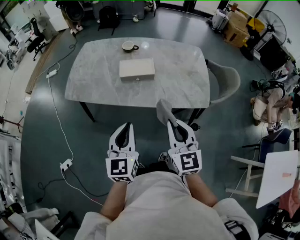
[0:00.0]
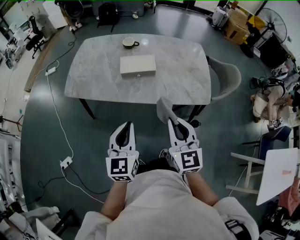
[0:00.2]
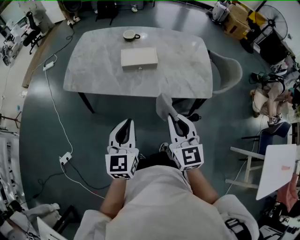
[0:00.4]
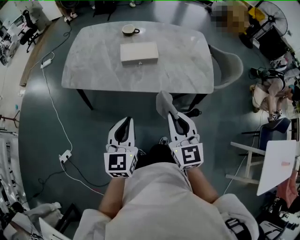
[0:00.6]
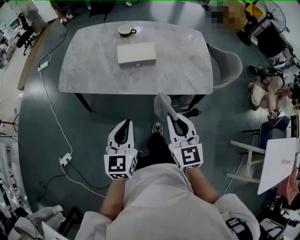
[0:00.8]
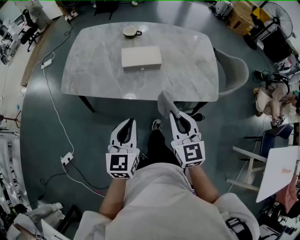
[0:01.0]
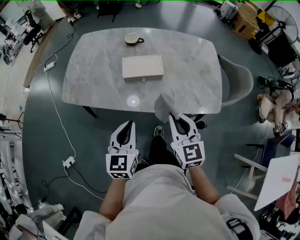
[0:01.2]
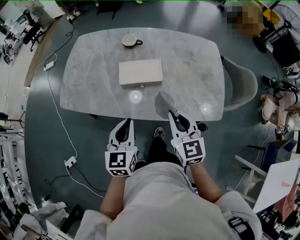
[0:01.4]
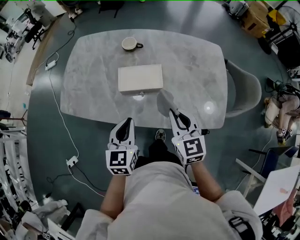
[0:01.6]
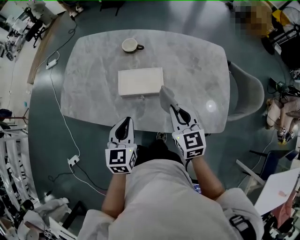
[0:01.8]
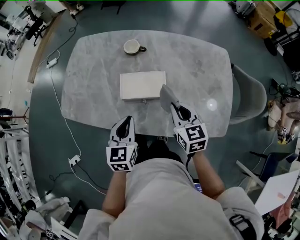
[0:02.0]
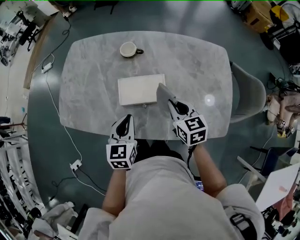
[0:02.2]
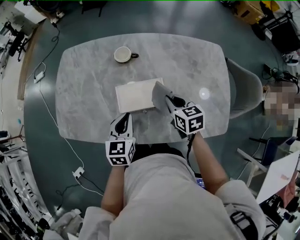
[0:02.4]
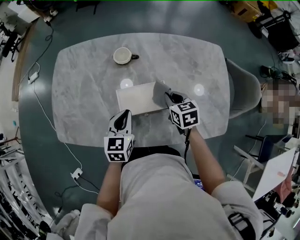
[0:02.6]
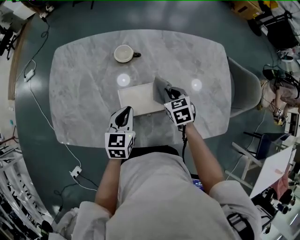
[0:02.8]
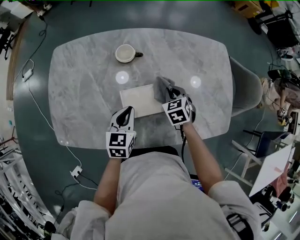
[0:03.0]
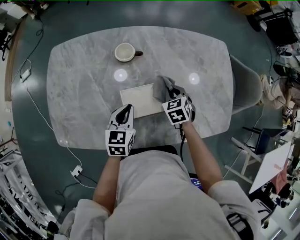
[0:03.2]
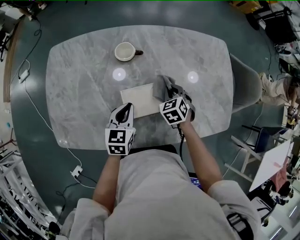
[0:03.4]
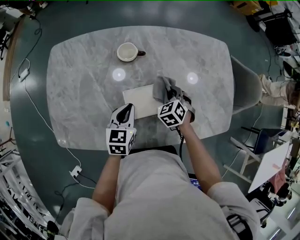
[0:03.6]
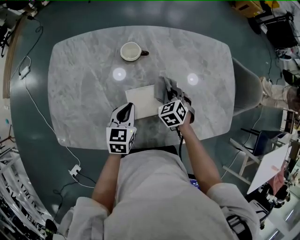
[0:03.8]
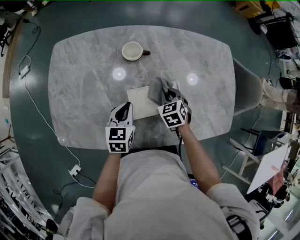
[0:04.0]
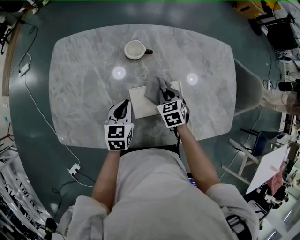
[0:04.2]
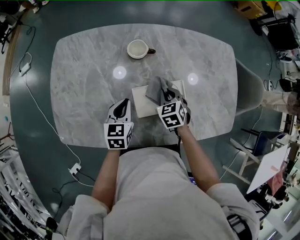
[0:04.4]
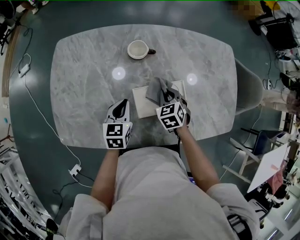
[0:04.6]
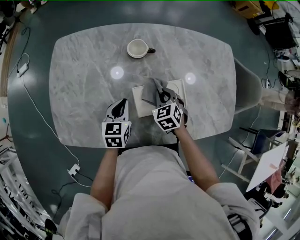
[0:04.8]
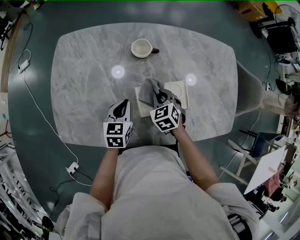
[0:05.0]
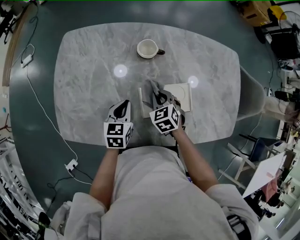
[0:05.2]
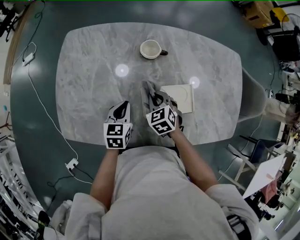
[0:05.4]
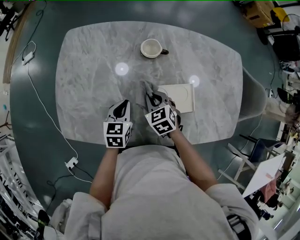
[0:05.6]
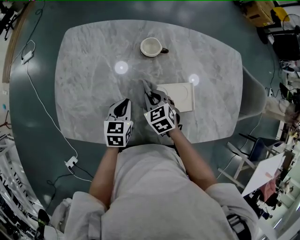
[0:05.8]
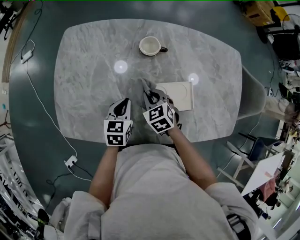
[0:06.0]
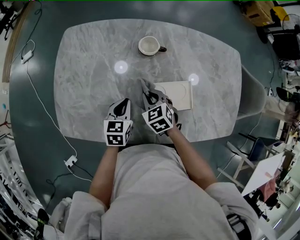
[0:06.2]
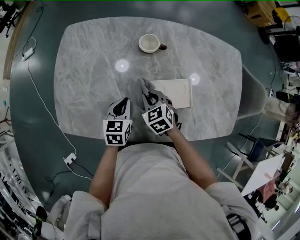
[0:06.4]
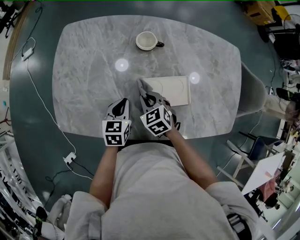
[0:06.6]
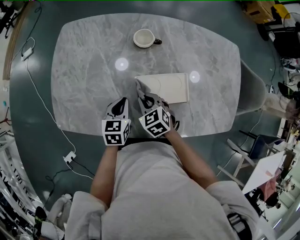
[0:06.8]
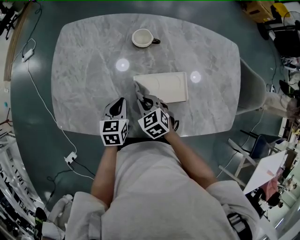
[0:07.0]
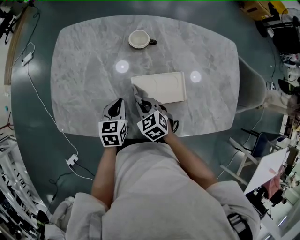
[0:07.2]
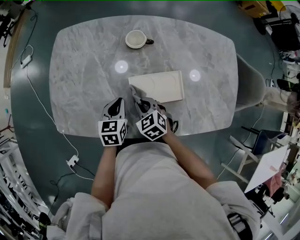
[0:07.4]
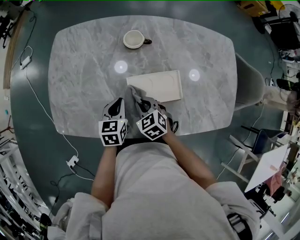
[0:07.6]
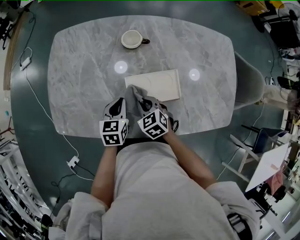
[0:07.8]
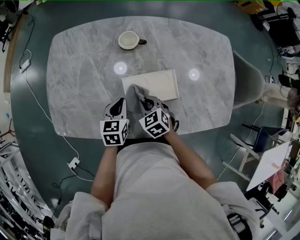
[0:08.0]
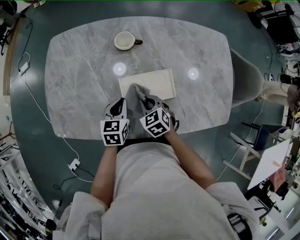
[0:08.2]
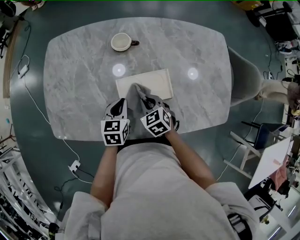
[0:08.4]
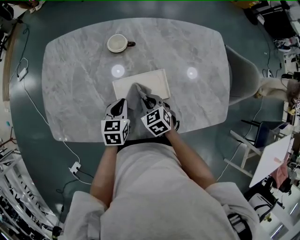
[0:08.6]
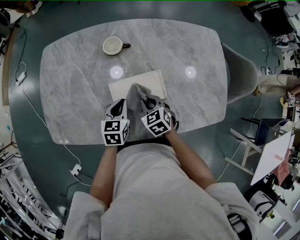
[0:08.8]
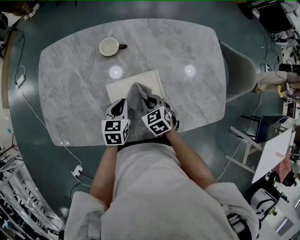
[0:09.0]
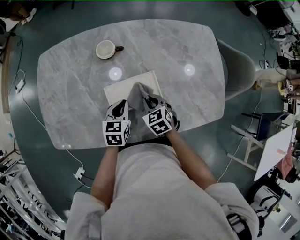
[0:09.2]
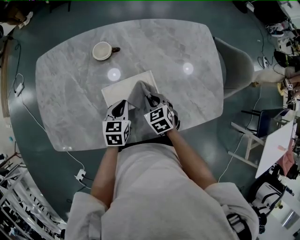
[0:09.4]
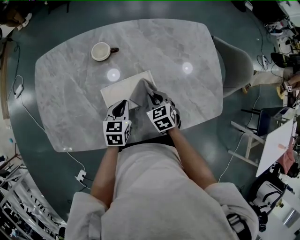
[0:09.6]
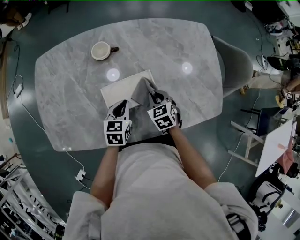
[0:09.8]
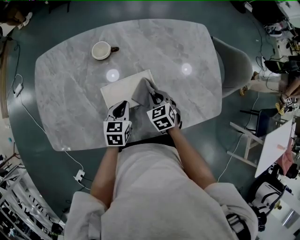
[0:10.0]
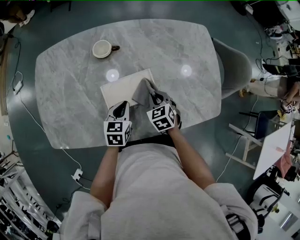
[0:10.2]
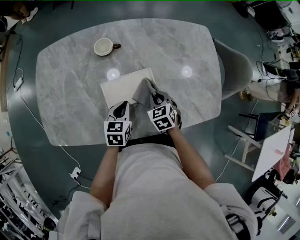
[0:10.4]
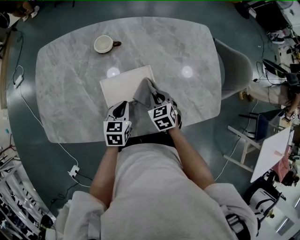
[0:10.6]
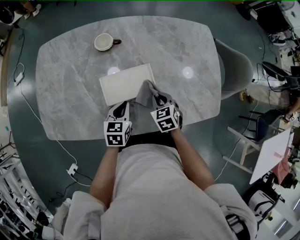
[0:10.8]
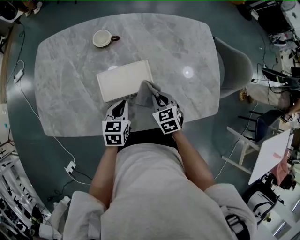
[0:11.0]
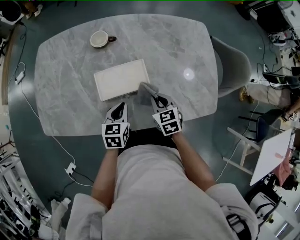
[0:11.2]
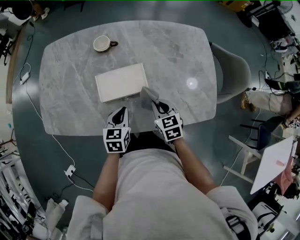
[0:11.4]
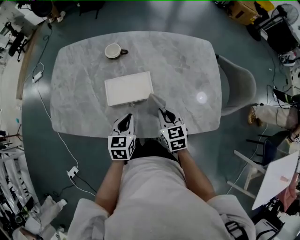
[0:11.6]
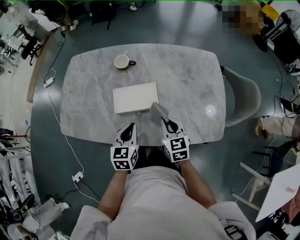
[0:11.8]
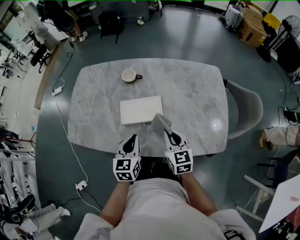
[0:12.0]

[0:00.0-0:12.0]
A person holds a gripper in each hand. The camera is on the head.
0:00.0 to 0:01.6: Both grippers move forward, some 25 cm.
0:01.6 to 0:03.0: The two grippers go about 30 cm forward and downward. The left gripper rotates roughly 20 degrees. Meanwhile the right gripper tilts its fingers about 30 degrees downward.
0:03.0 to 0:04.4: The two grippers go approximately 10 cm to the left.
0:04.4 to 0:06.0: The right gripper heads to the left, covering some 10 cm.
0:06.0 to 0:07.6: The right gripper travels backward by approximately 10 cm.
0:07.6 to 0:09.0: The two grippers go approximately 10 cm to the right.
0:09.0 to 0:10.4: The right gripper moves to the right, roughly 5 cm.
0:10.4 to 0:12.0: Both grippers move upward and backward, some 15 cm. The left gripper swivels approximately 20 degrees, while the right gripper changes its angle by some 30 degrees.

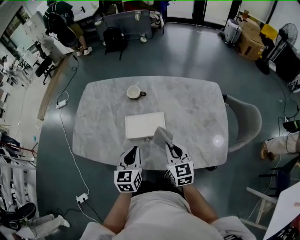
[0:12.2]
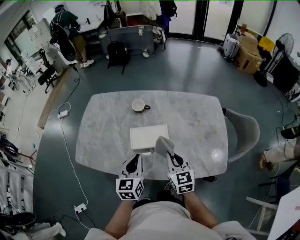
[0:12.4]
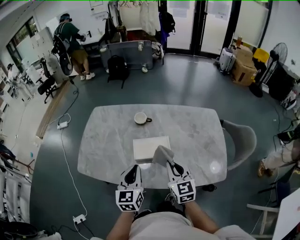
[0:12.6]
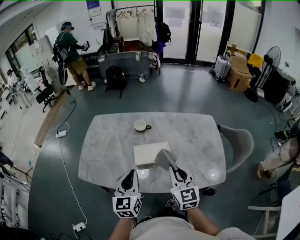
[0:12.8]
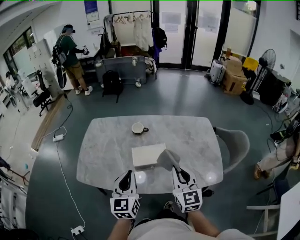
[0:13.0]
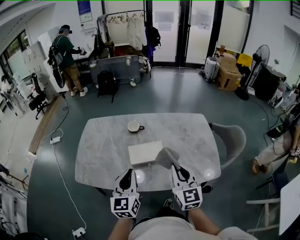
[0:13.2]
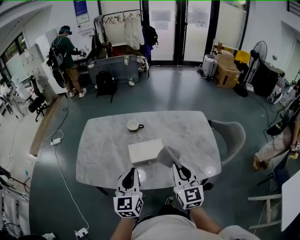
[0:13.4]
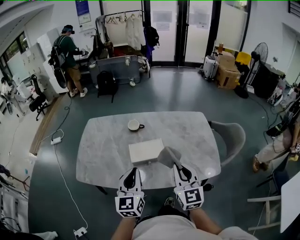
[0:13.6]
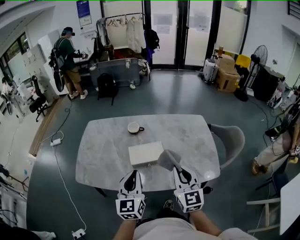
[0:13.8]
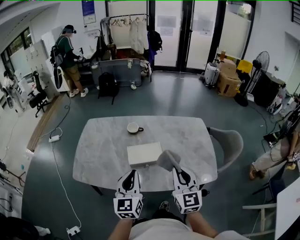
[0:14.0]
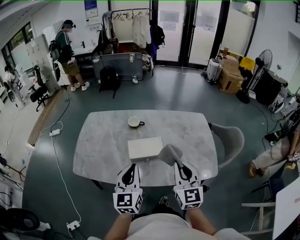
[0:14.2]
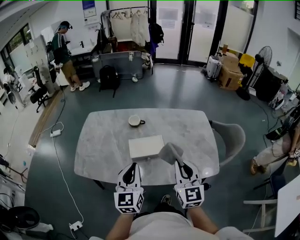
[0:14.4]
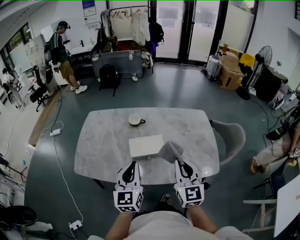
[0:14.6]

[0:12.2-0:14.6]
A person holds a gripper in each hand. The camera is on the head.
0:12.2 to 0:13.4: The two grippers go some 15 cm upward and backward. The right gripper turns by some 20 degrees.
0:13.4 to 0:14.6: The grippers make only small movements.

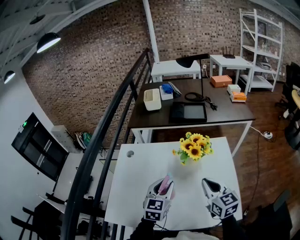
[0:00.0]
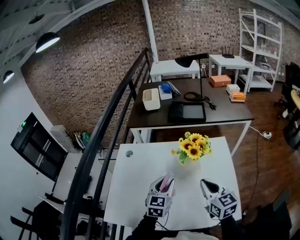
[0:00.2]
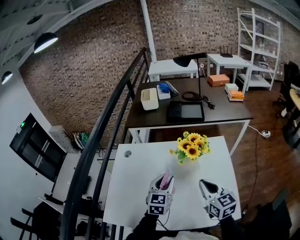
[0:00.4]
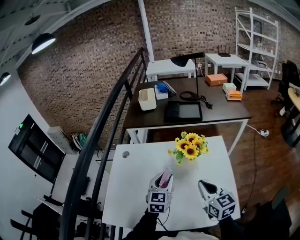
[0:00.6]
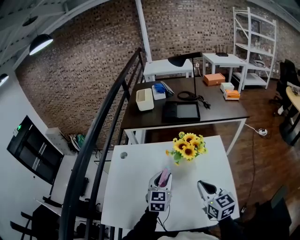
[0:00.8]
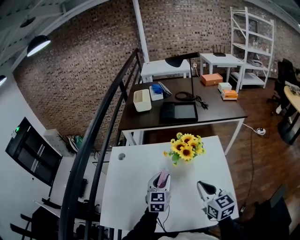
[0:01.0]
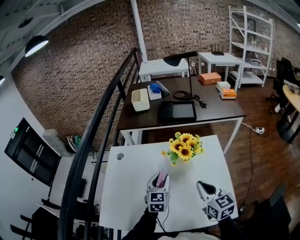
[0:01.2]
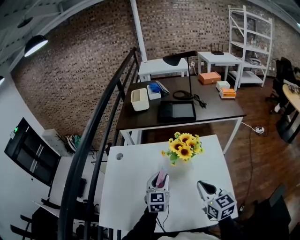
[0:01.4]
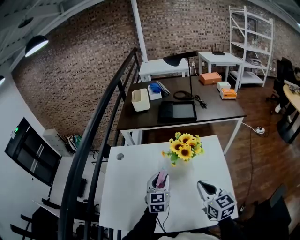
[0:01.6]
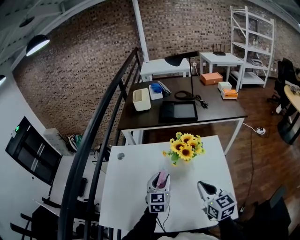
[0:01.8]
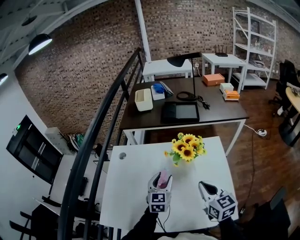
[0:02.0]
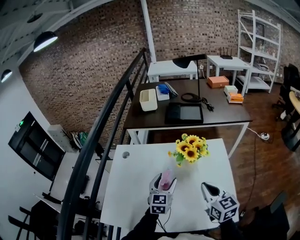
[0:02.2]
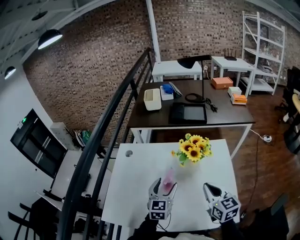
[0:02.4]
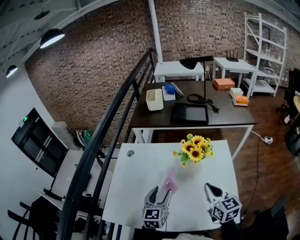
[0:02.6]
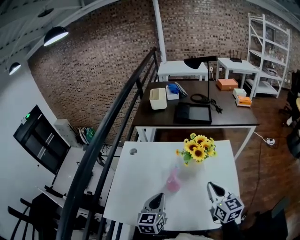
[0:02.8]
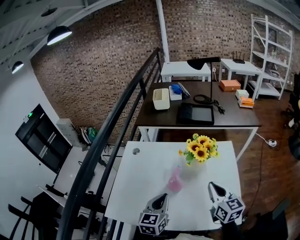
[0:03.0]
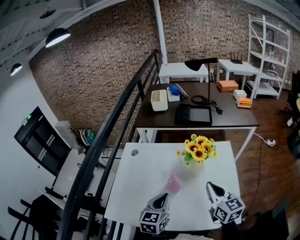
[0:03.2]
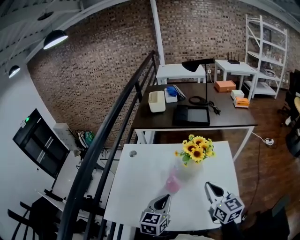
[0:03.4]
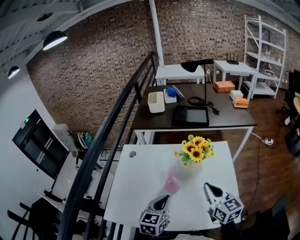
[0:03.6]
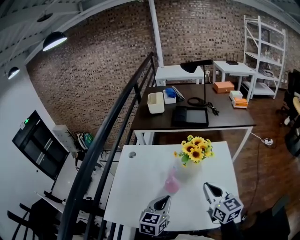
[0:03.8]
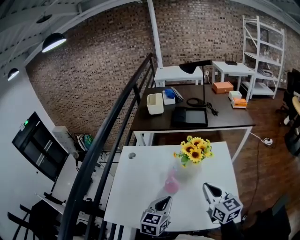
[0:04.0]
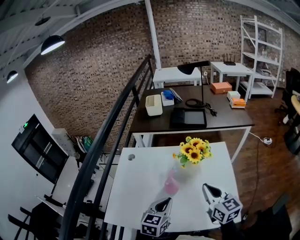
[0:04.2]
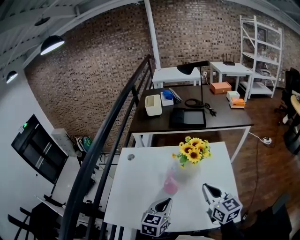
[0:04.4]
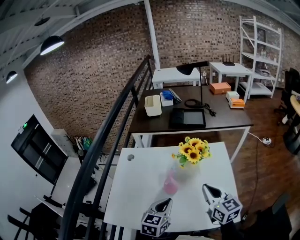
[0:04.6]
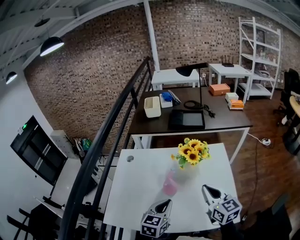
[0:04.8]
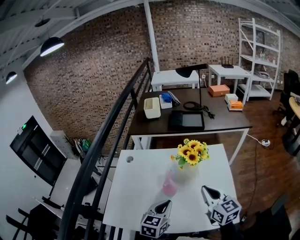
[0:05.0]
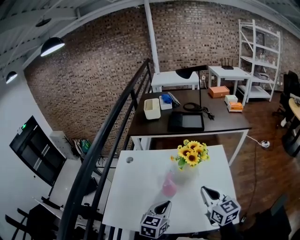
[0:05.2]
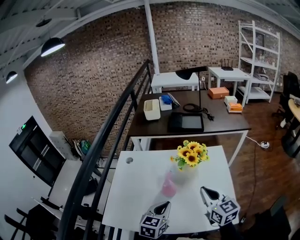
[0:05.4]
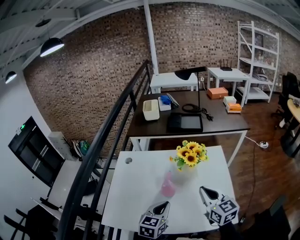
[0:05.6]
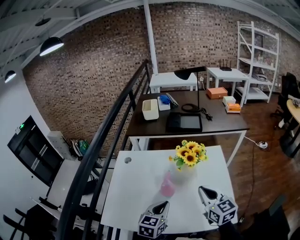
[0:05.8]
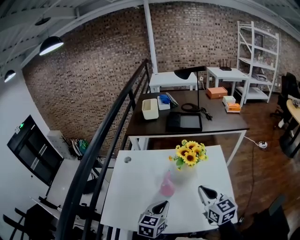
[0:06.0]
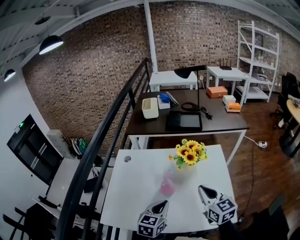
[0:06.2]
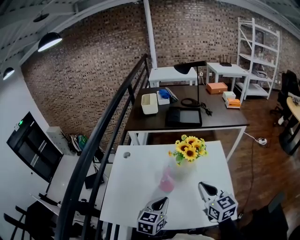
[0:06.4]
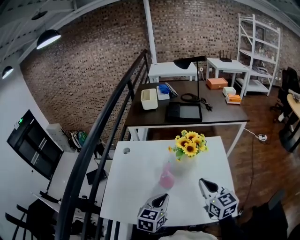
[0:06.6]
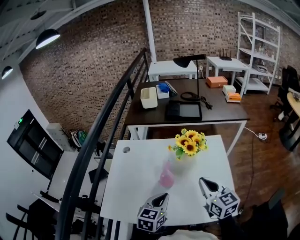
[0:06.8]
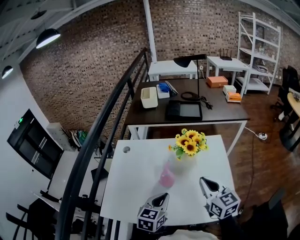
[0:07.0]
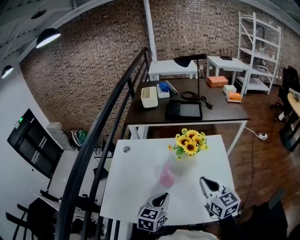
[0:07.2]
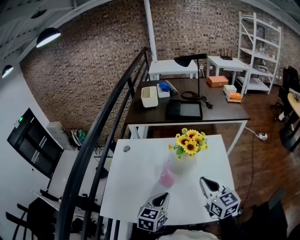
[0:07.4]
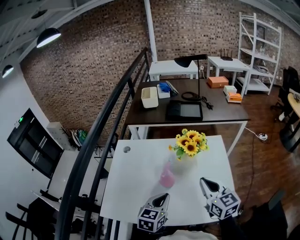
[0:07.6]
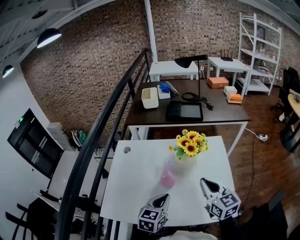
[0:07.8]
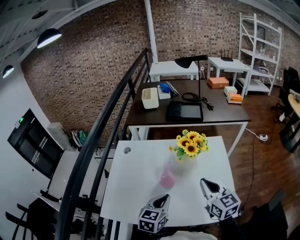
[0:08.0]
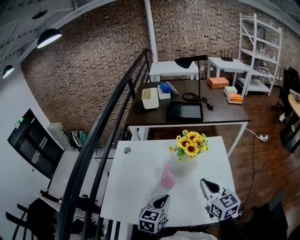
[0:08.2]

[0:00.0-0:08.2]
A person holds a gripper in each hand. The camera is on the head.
0:00.0 to 0:01.6: The left gripper travels forward by about 5 cm.
0:01.6 to 0:03.2: The left gripper moves backward and to the left, approximately 15 cm, and closes.
0:03.2 to 0:05.0: The grippers make only small movements.
0:05.0 to 0:08.2: The two grippers keep their place.

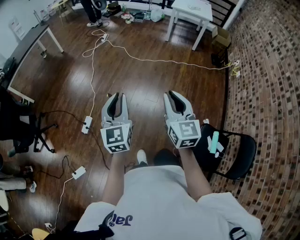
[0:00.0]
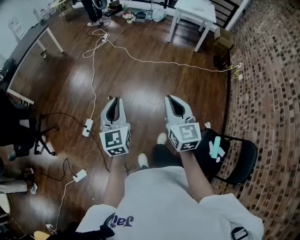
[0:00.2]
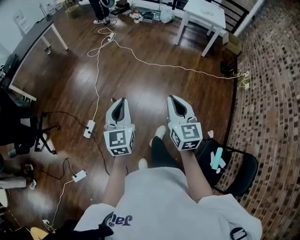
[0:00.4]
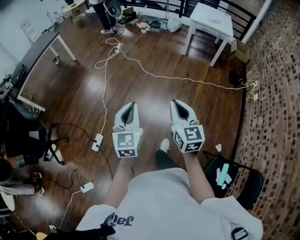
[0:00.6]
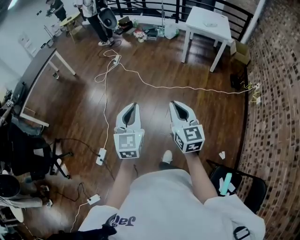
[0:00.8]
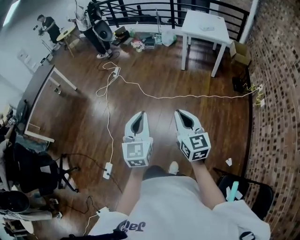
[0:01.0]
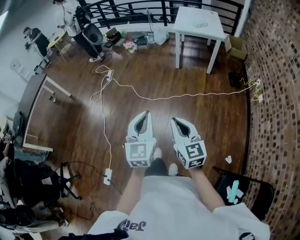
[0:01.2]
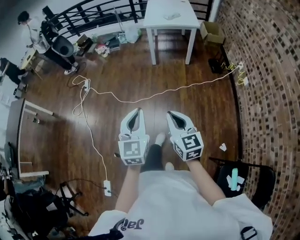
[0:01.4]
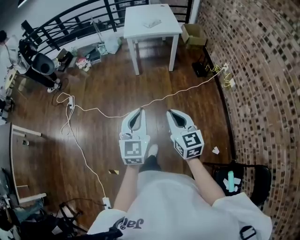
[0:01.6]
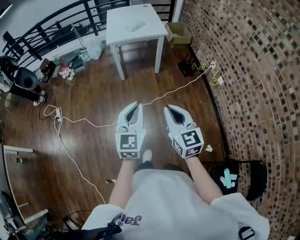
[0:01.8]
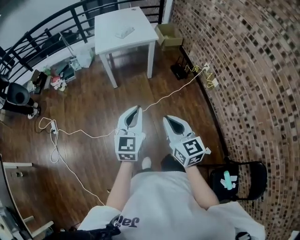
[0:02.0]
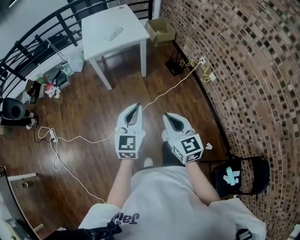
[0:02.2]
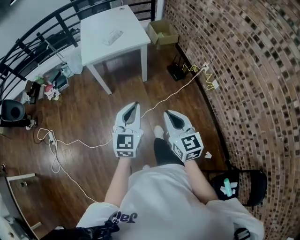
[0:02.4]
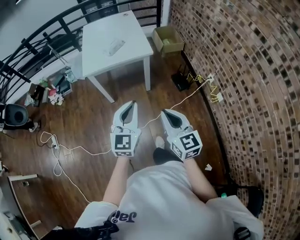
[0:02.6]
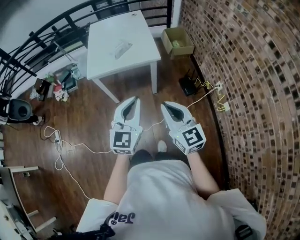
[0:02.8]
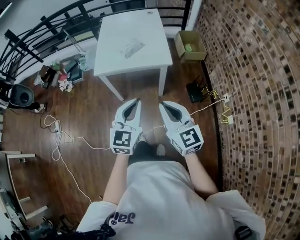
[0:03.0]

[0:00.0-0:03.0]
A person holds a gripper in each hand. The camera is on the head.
0:00.0 to 0:01.6: Both grippers are carried about 70 cm. The left gripper changes its angle by approximately 30 degrees.
0:01.6 to 0:03.0: Both grippers are carried forward, roughly 60 cm.
